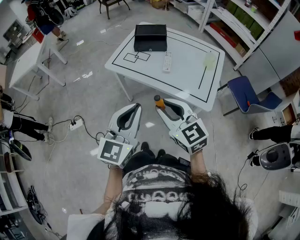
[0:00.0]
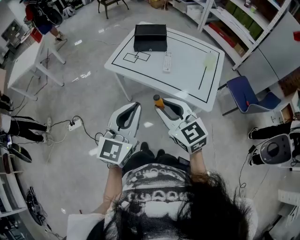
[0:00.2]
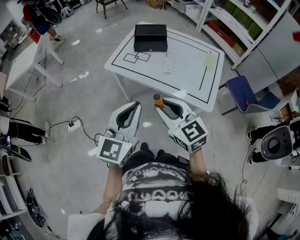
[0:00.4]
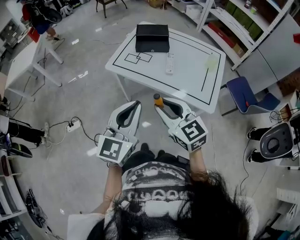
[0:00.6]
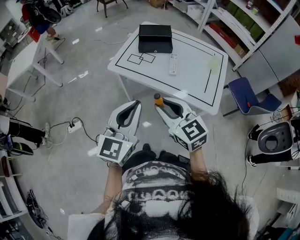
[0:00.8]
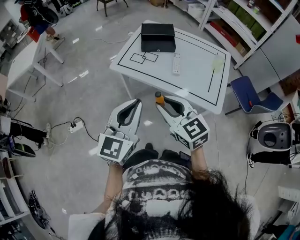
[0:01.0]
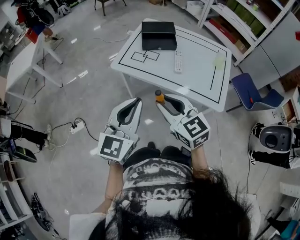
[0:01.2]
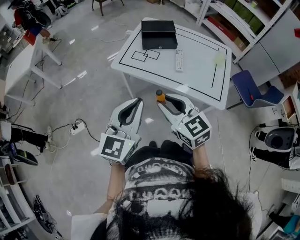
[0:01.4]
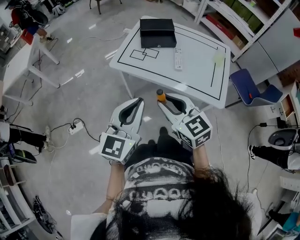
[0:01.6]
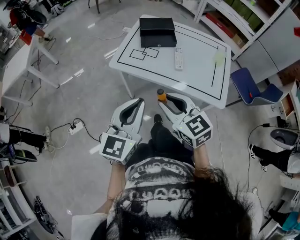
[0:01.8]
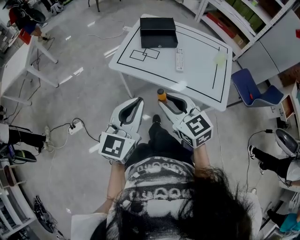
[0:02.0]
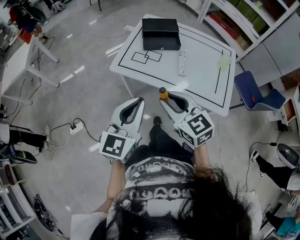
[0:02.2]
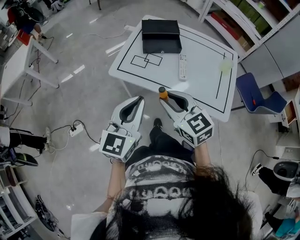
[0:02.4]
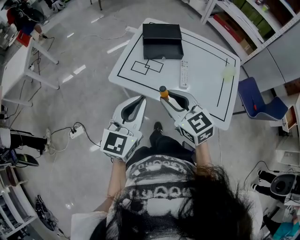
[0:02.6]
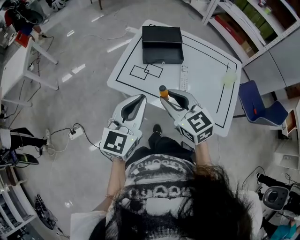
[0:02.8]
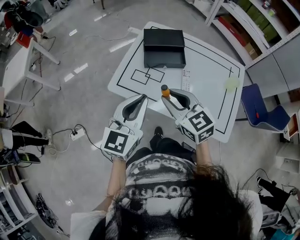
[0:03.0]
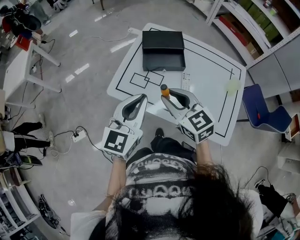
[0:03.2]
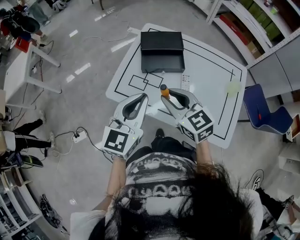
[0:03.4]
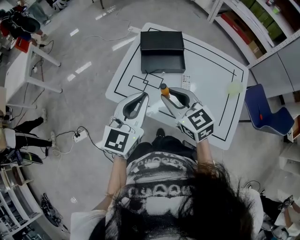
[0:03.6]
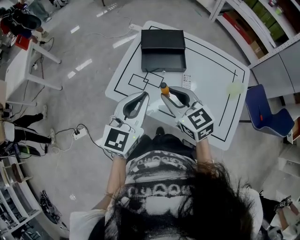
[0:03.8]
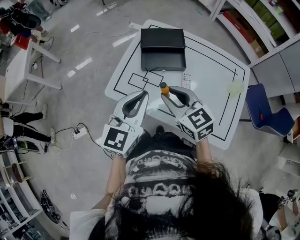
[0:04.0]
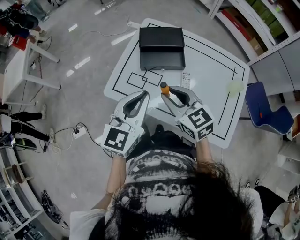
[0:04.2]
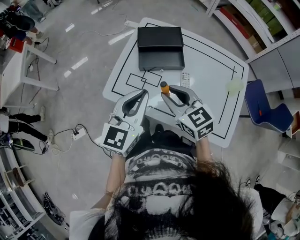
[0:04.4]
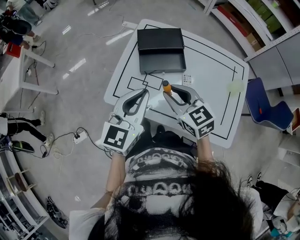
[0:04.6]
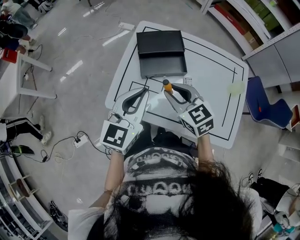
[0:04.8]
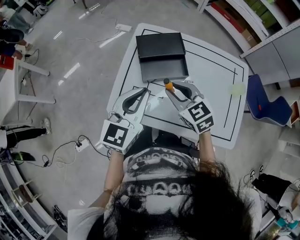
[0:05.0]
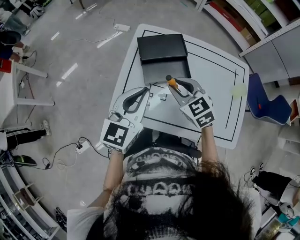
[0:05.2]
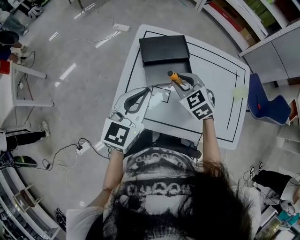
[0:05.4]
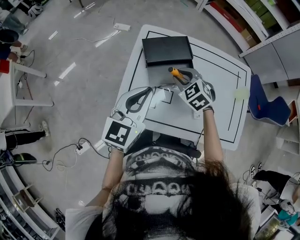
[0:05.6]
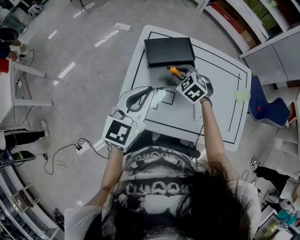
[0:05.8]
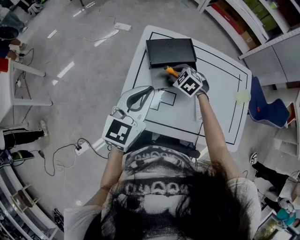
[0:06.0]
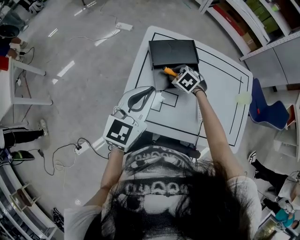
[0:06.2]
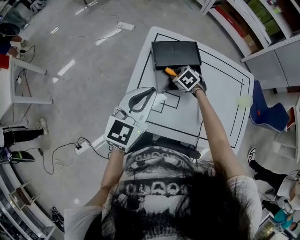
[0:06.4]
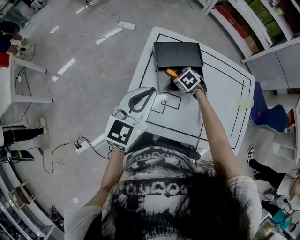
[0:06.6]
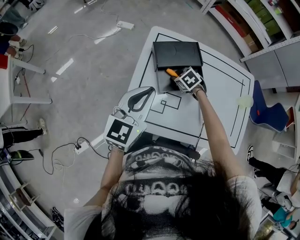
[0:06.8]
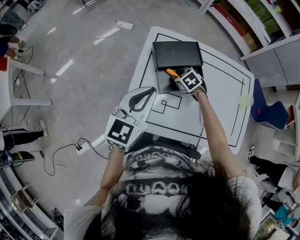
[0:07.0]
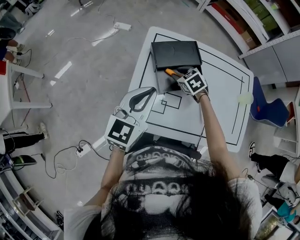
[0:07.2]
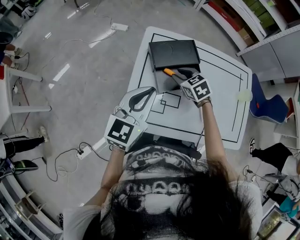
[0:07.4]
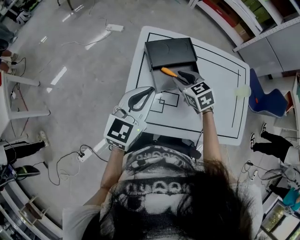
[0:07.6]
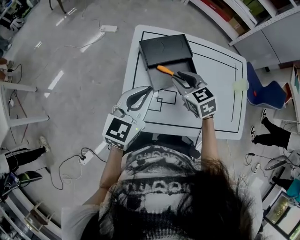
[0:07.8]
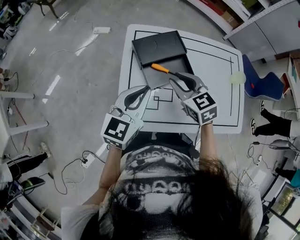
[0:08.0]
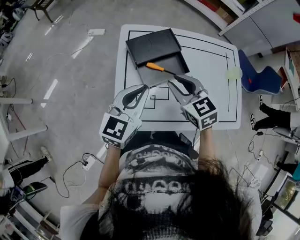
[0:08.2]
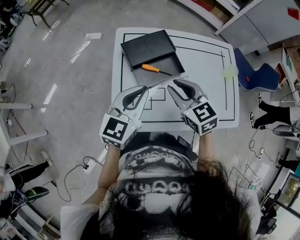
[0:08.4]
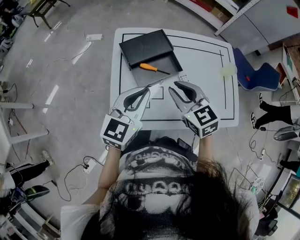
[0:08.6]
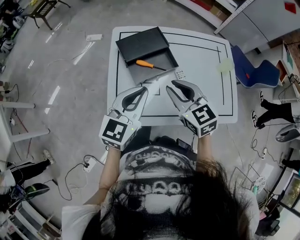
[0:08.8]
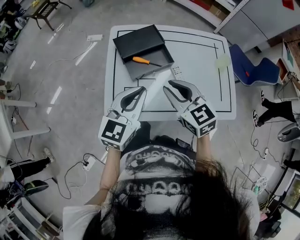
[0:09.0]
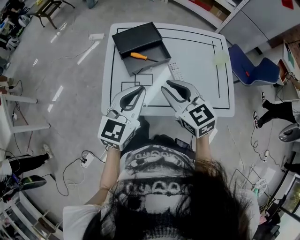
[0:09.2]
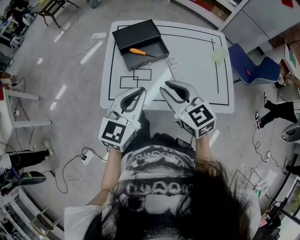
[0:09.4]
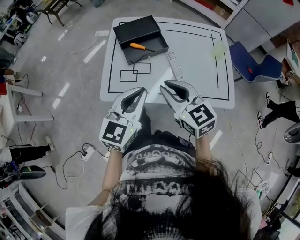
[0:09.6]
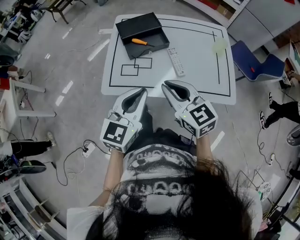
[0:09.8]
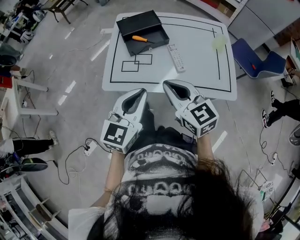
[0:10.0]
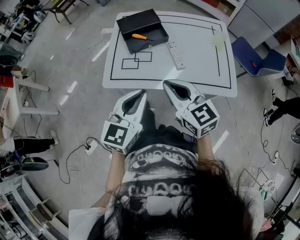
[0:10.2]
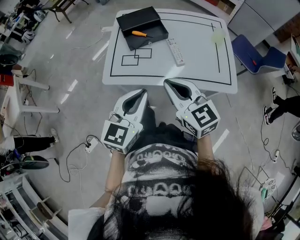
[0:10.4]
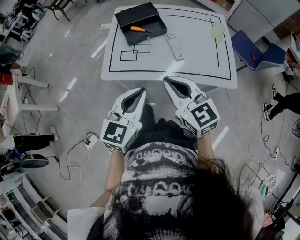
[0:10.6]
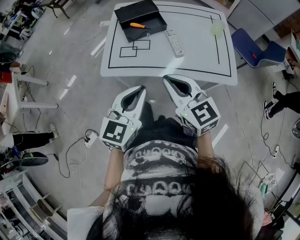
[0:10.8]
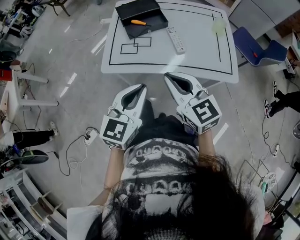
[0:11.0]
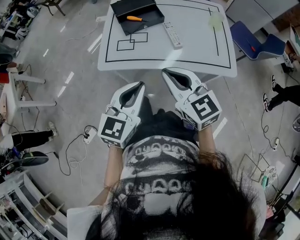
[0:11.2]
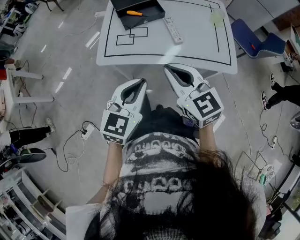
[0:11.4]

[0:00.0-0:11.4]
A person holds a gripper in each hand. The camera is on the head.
0:00.0 to 0:01.4: Both grippers travel together to the left and forward, roughly 15 cm.
0:01.4 to 0:02.8: Both grippers travel together forward, some 20 cm.
0:02.8 to 0:04.2: The left gripper is displaced forward and to the right by about 10 cm, while the right gripper goes some 10 cm forward.
0:04.2 to 0:05.6: The right gripper moves forward and downward, some 25 cm, and swivels roughly 40 degrees. Meanwhile the left gripper is displaced forward and to the left by approximately 15 cm.
0:05.6 to 0:07.2: The left gripper shifts by roughly 5 cm. The right gripper shifts roughly 10 cm downward and forward, and turns by about 20 degrees.
0:07.2 to 0:08.6: The left gripper shifts roughly 5 cm to the right. The right gripper moves upward and backward, about 25 cm, and rotates some 30 degrees.
0:08.6 to 0:10.0: The right gripper goes approximately 25 cm backward, and closes its fingers; the left gripper goes roughly 25 cm backward and to the right.
0:10.0 to 0:11.4: Both grippers travel together backward, approximately 5 cm.

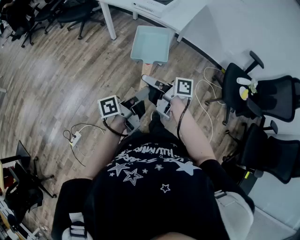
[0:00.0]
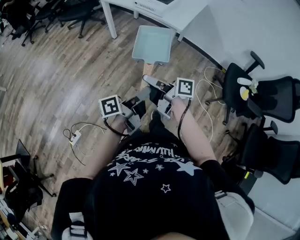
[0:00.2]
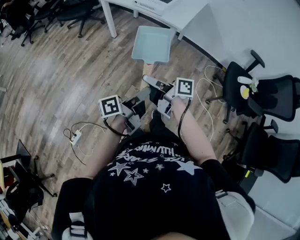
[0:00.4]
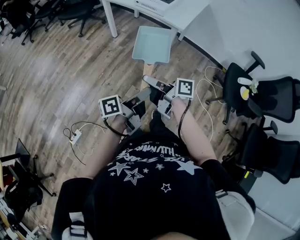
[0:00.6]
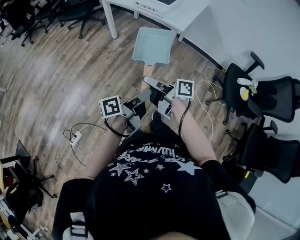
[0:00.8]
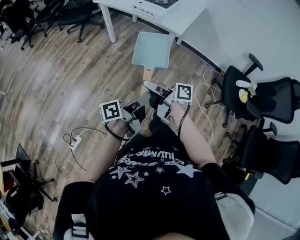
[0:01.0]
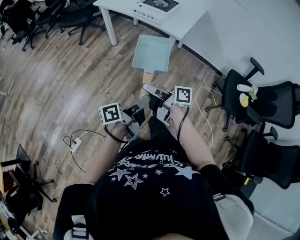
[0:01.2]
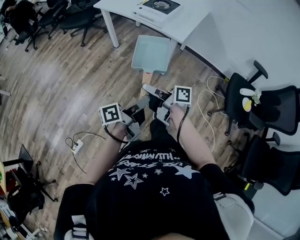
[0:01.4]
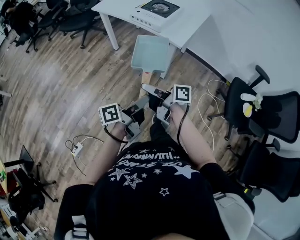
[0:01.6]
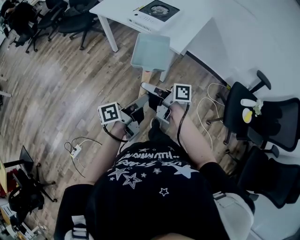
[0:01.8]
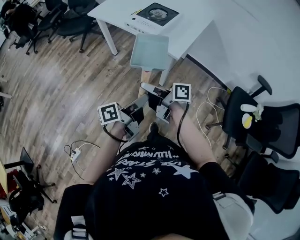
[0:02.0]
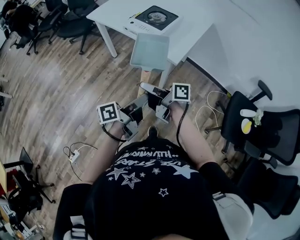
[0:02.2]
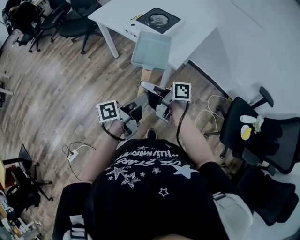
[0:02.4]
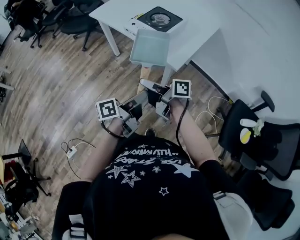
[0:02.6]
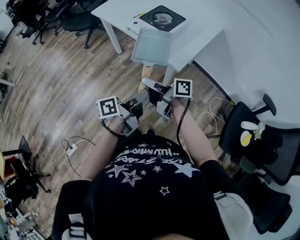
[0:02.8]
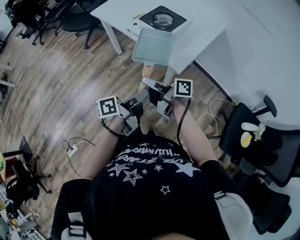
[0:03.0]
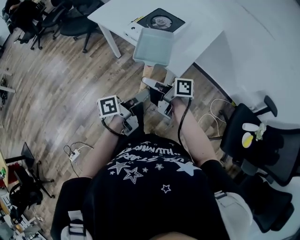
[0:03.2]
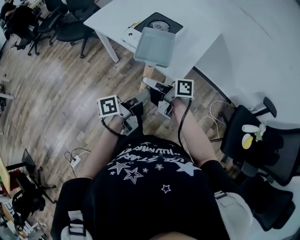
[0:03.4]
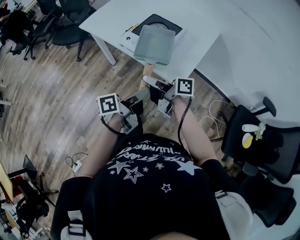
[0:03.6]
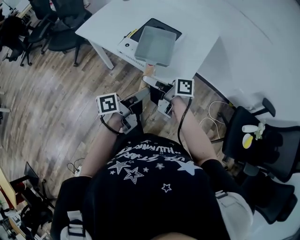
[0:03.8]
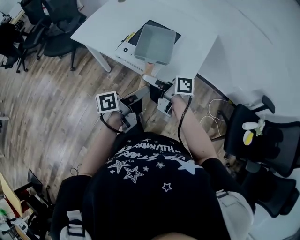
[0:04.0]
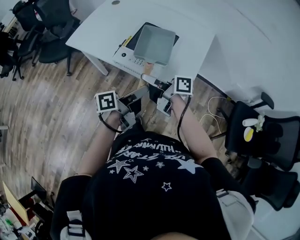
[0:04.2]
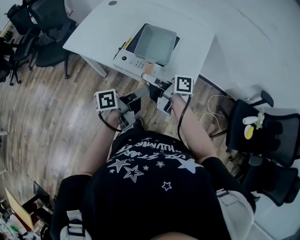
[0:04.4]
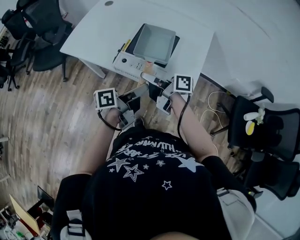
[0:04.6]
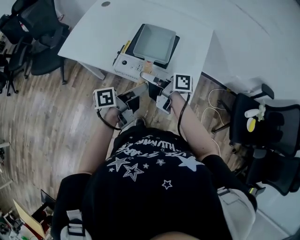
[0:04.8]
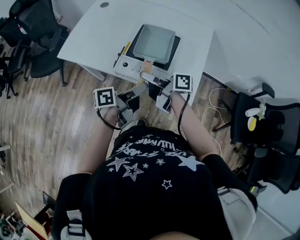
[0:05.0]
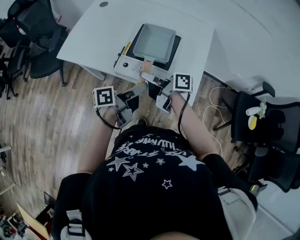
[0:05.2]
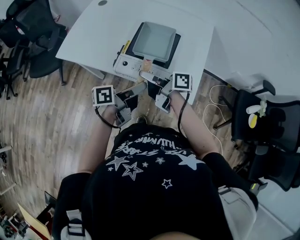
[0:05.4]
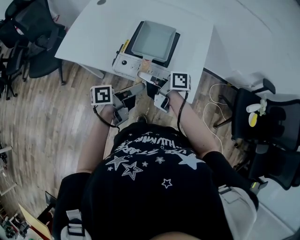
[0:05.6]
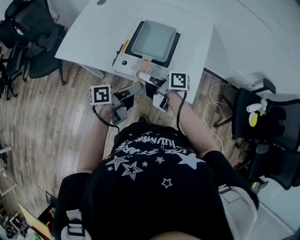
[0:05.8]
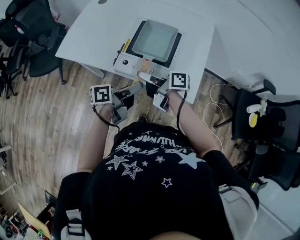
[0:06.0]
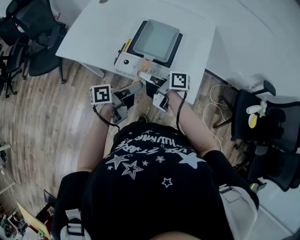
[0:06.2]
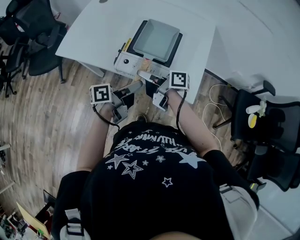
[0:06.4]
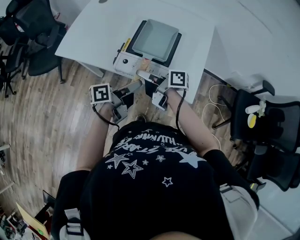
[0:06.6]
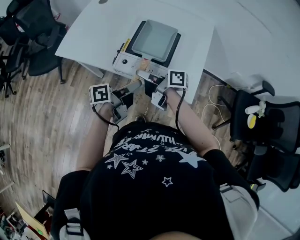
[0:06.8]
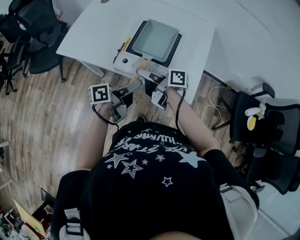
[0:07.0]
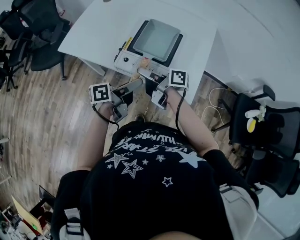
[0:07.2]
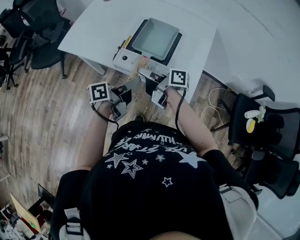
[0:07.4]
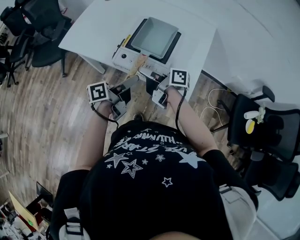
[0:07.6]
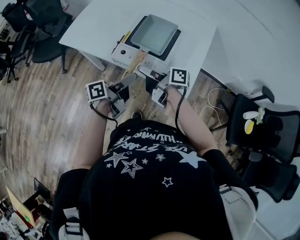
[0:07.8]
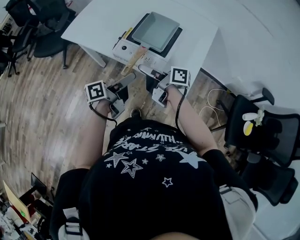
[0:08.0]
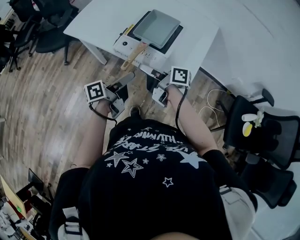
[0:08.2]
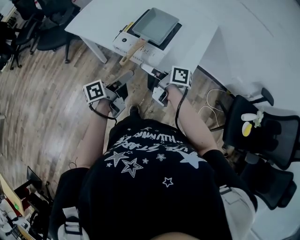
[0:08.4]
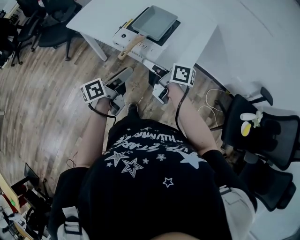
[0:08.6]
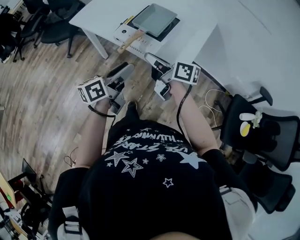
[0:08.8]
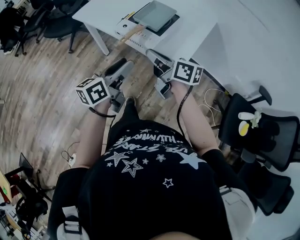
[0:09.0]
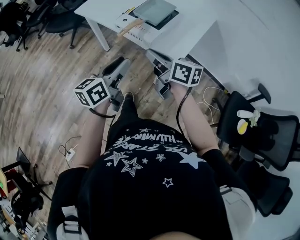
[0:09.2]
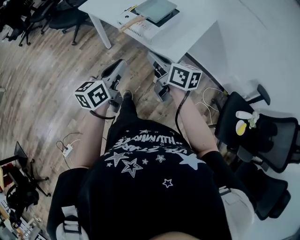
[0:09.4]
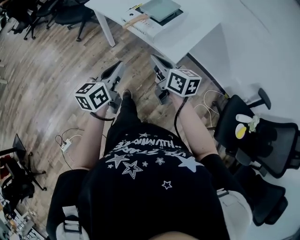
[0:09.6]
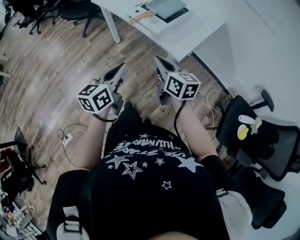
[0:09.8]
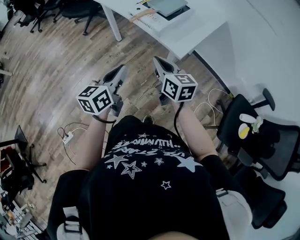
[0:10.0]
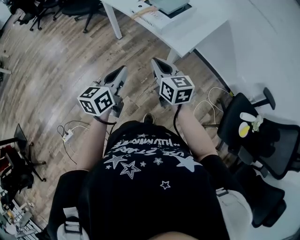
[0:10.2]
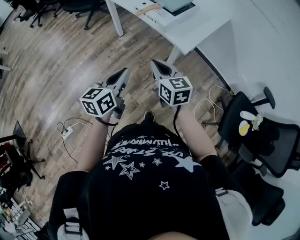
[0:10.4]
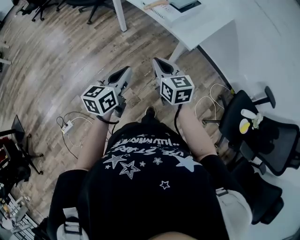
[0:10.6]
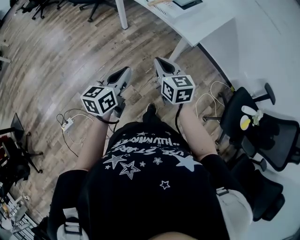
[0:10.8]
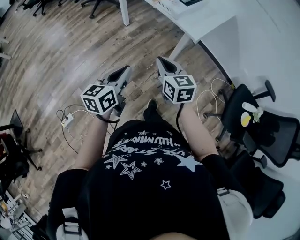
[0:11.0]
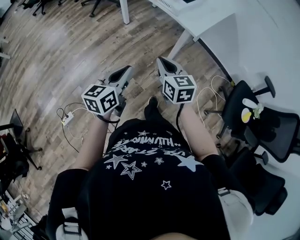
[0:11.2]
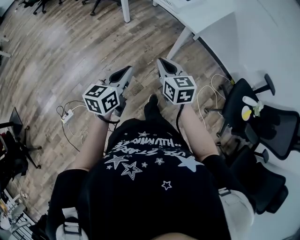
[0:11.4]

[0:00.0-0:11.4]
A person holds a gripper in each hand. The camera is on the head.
0:00.0 to 0:01.4: The two grippers go some 5 cm forward.
0:01.4 to 0:02.8: The grippers both shift forward and to the right by roughly 25 cm.
0:02.8 to 0:04.2: The grippers both shift forward by approximately 25 cm.
0:04.2 to 0:05.6: Both grippers move forward, some 5 cm.
0:05.6 to 0:07.2: The left gripper opens its fingers.
0:07.2 to 0:08.6: Both grippers travel together backward, roughly 10 cm. The left gripper rotates approximately 20 degrees; the right gripper closes its fingers.
0:08.6 to 0:10.0: Both grippers travel together backward, about 25 cm. The left gripper rotates some 40 degrees, and closes its fingers; the right gripper rotates around the line of its fingers by about 40 degrees, counterclockwise from behind.
0:10.0 to 0:11.4: Both grippers move backward and to the left, about 20 cm.

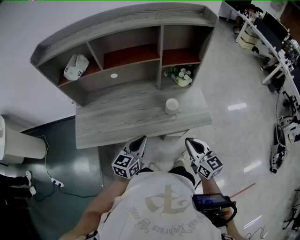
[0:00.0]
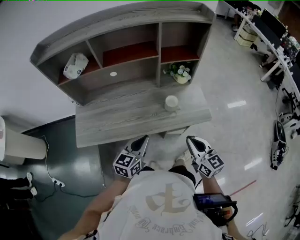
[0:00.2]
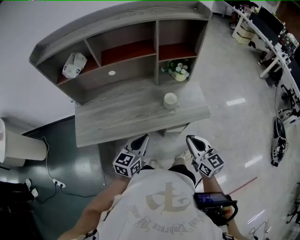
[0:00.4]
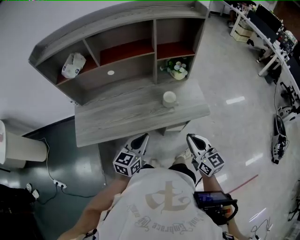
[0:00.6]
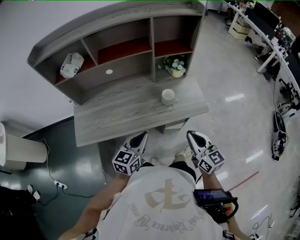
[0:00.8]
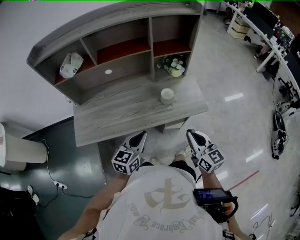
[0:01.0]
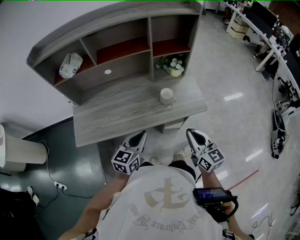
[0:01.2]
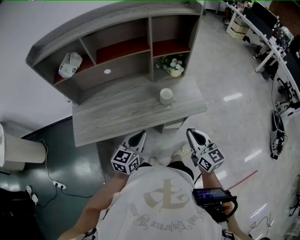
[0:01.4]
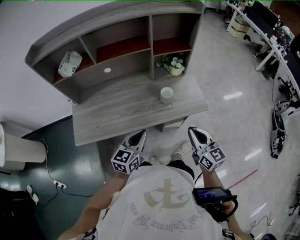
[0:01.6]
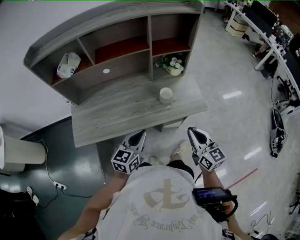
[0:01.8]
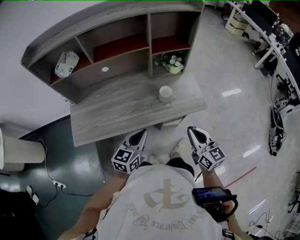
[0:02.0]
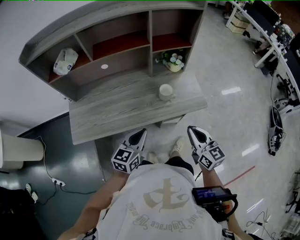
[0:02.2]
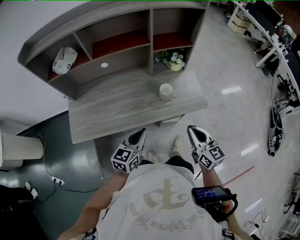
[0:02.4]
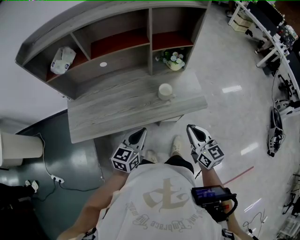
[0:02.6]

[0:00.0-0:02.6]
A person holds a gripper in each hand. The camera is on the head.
0:00.0 to 0:02.6: The grippers move only a little.
